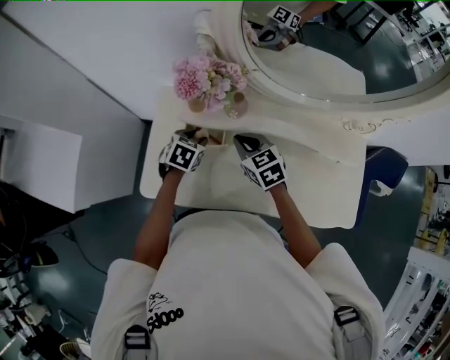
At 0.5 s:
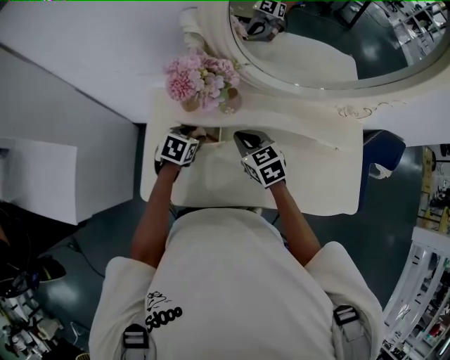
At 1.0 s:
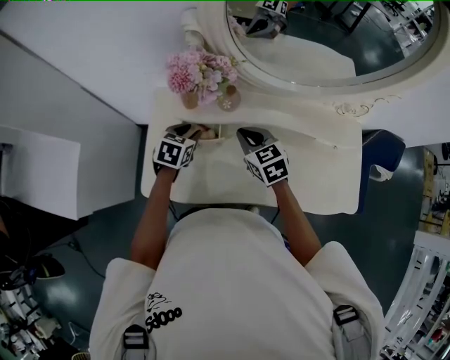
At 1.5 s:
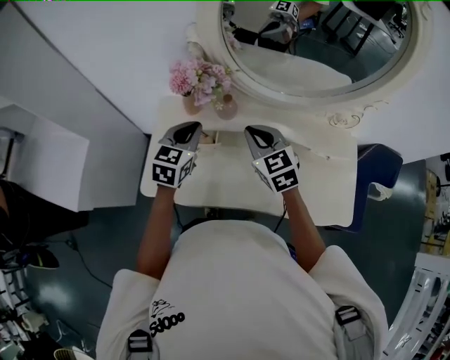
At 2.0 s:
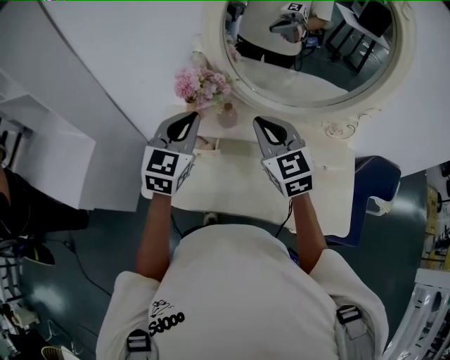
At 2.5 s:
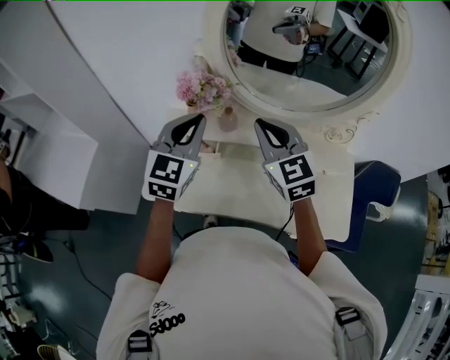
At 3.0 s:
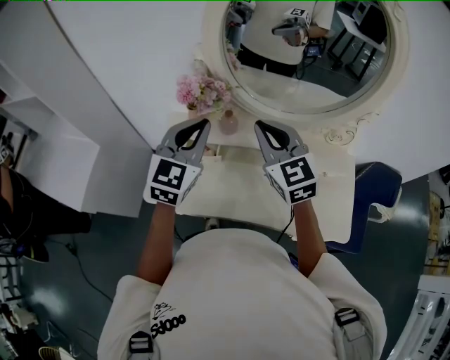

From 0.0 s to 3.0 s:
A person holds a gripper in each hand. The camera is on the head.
From 0.0 s to 1.5 s: The right gripper heads upward and to the right, covering approximately 15 cm, while the left gripper shifts roughly 20 cm upward, points its fingers some 30 degrees further upward, and closes up.
From 1.5 s to 3.0 s: The two grippers go roughly 15 cm upward. The left gripper swivels approximately 20 degrees.

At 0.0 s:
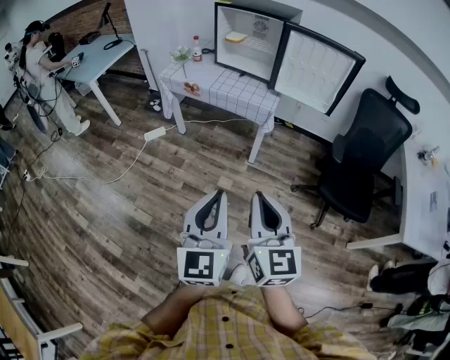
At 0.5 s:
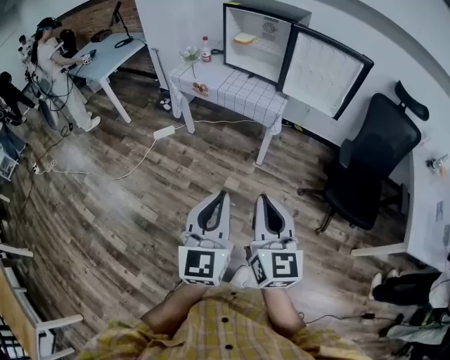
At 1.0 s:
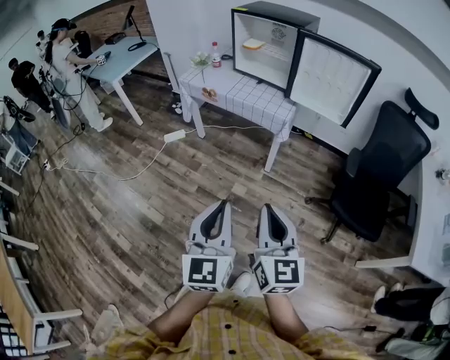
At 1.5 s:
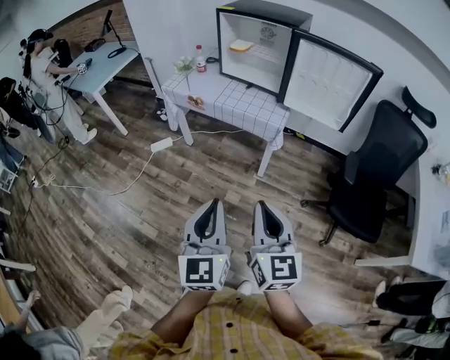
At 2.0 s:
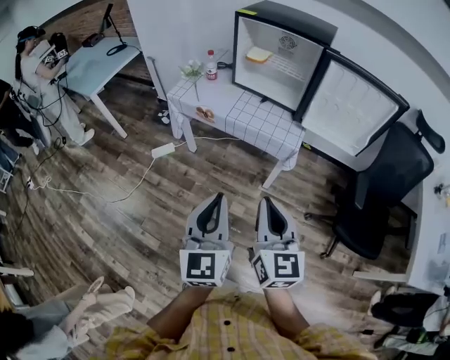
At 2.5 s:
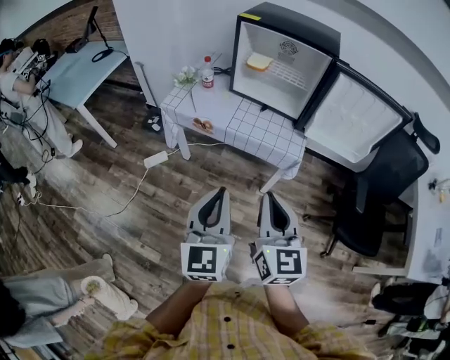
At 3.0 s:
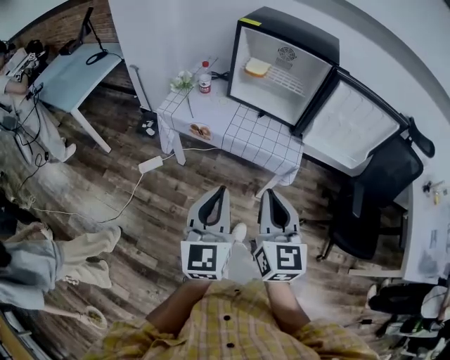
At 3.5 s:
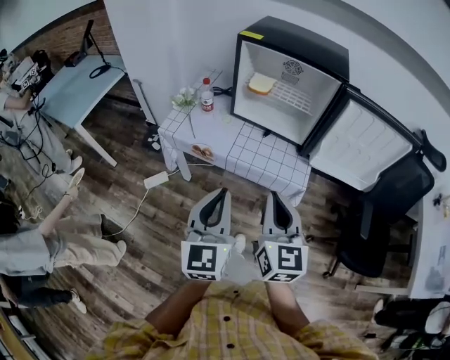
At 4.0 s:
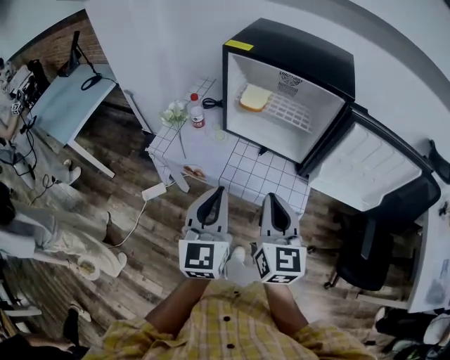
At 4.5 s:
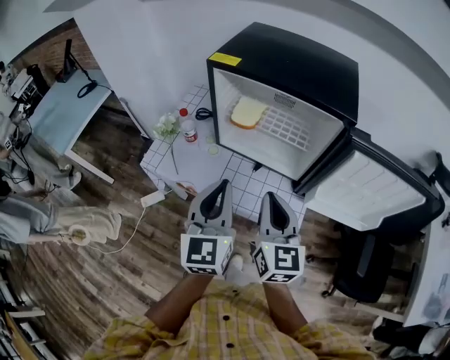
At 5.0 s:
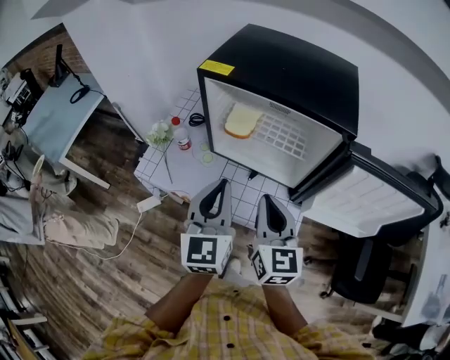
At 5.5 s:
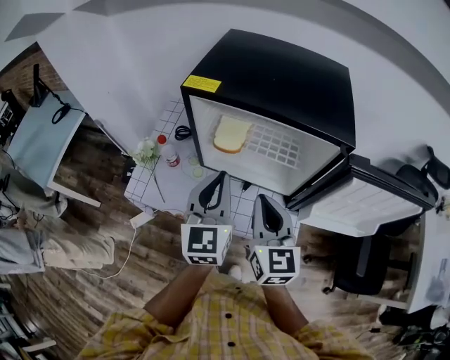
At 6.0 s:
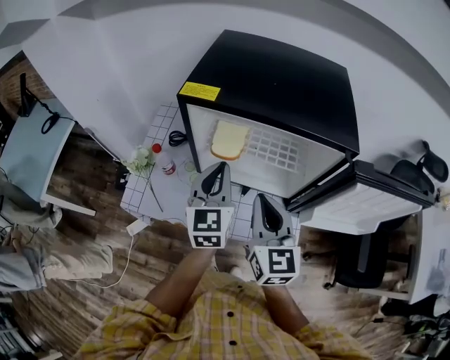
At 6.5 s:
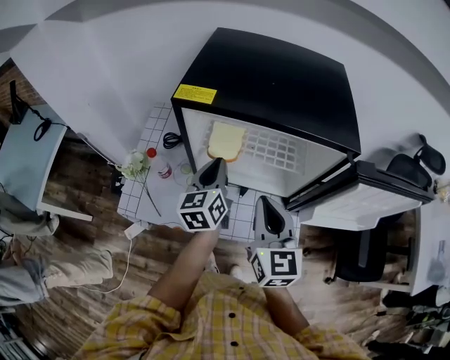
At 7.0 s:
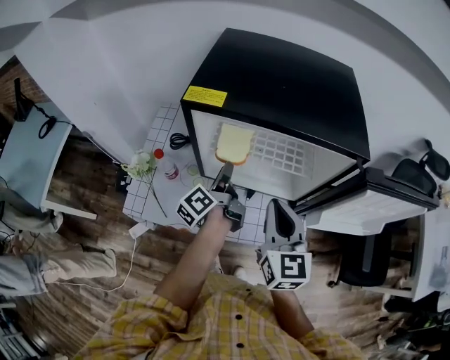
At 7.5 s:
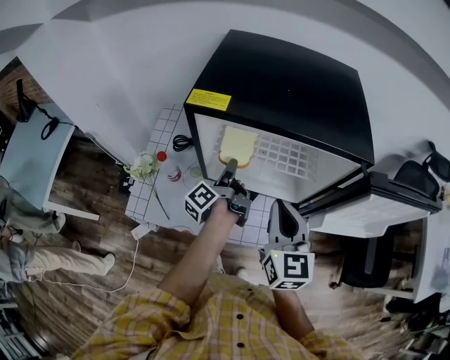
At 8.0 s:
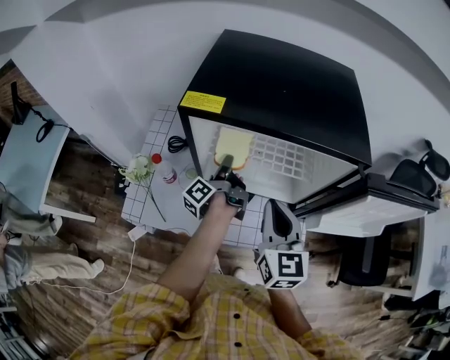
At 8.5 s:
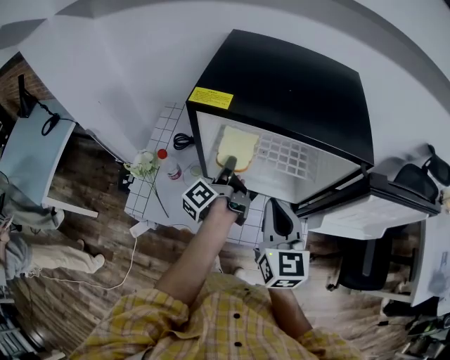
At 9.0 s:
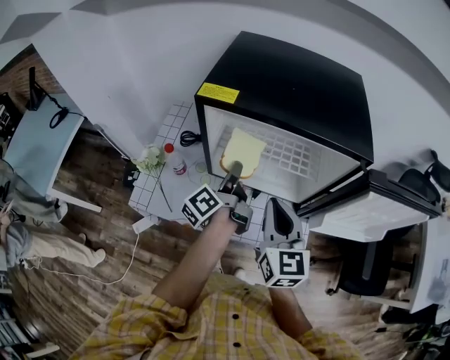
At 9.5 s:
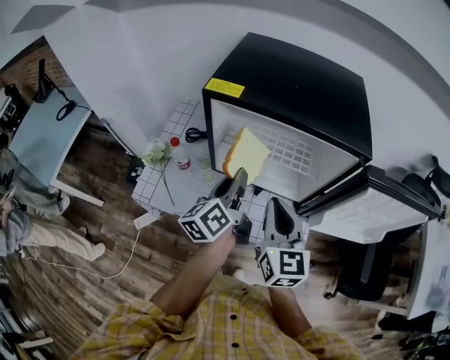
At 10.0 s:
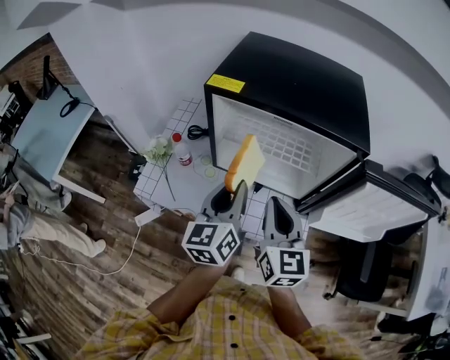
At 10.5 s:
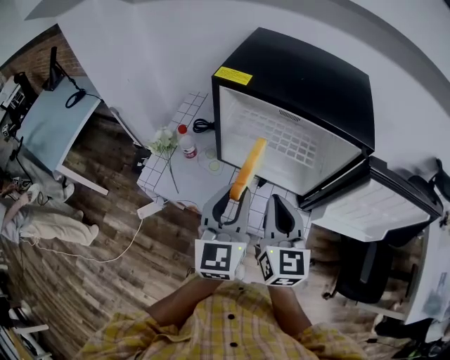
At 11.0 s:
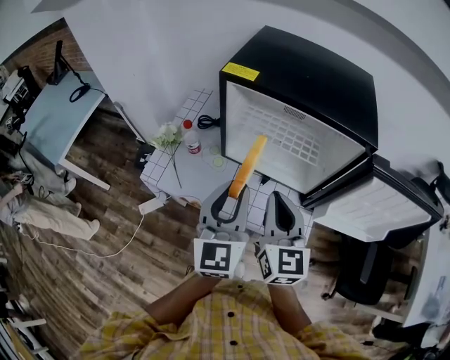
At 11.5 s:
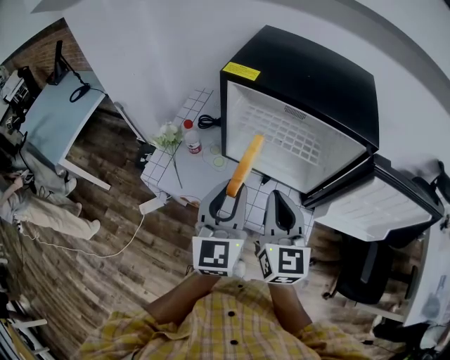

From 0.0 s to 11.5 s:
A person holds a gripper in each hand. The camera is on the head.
From 0.0 s to 2.0 s: The grippers both shift forward by some 25 cm.
From 2.0 s to 4.0 s: Both grippers travel together forward, about 30 cm.
From 4.0 s to 6.0 s: Both grippers move forward, roughly 25 cm.
From 6.0 s to 7.5 s: The left gripper goes some 15 cm downward and forward, twists some 90 degrees counterclockwise, seen from behind, and opens.
From 7.5 s to 9.5 s: The left gripper heads upward and backward, covering approximately 15 cm, and changes its angle by some 40 degrees.
From 9.5 s to 11.5 s: The left gripper goes roughly 10 cm backward and upward, and rotates around the line of its fingers by roughly 50 degrees, clockwise from behind.

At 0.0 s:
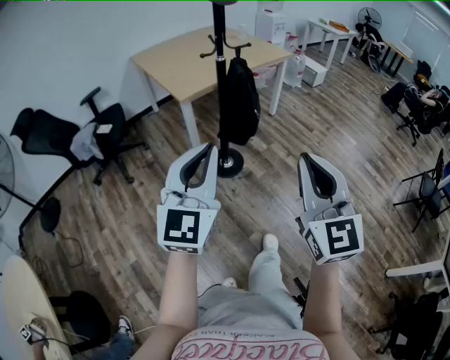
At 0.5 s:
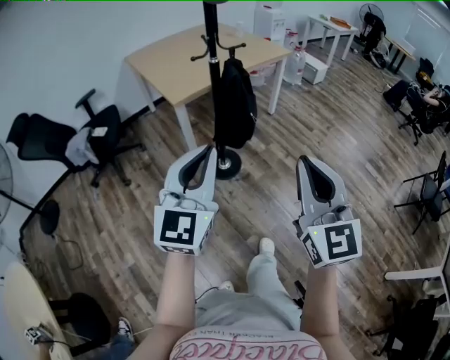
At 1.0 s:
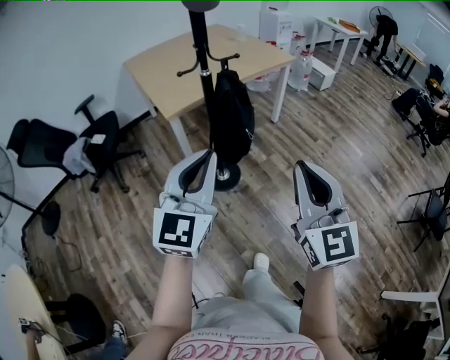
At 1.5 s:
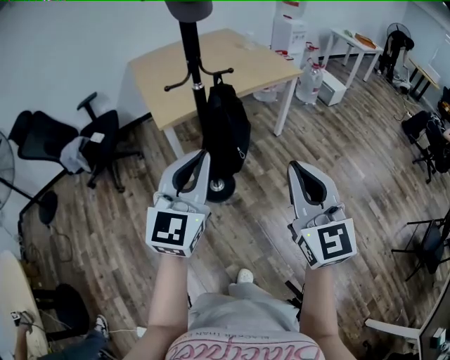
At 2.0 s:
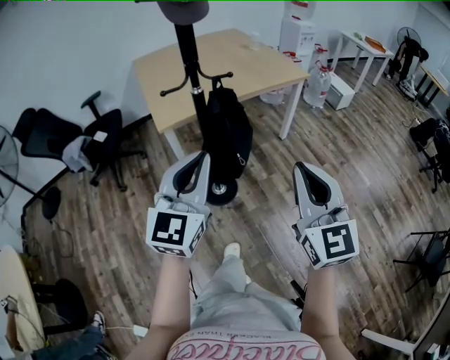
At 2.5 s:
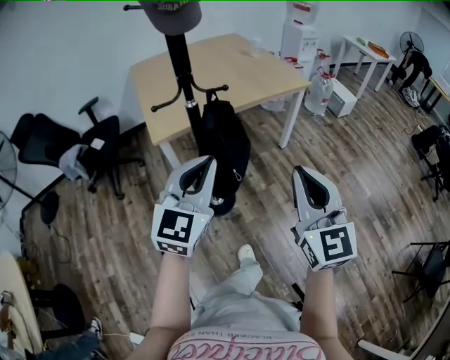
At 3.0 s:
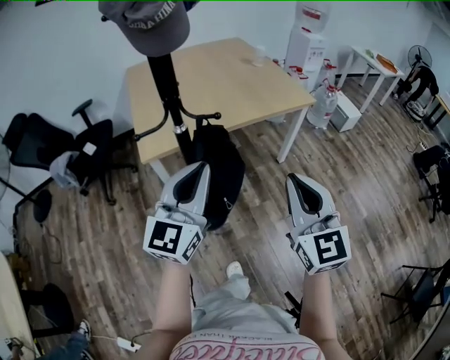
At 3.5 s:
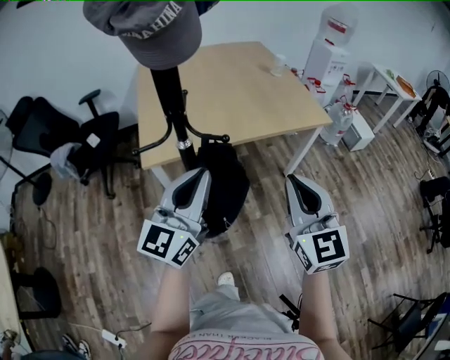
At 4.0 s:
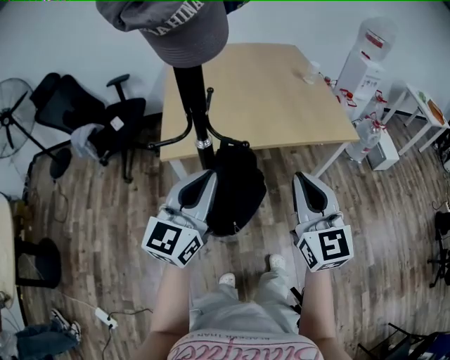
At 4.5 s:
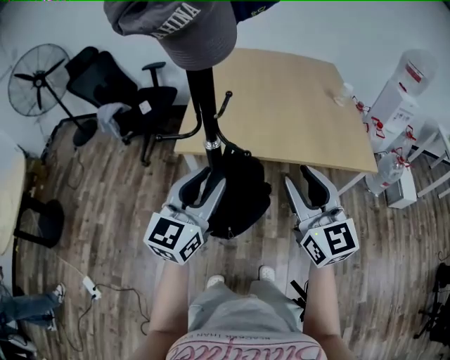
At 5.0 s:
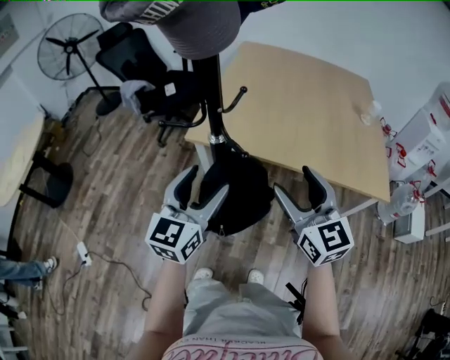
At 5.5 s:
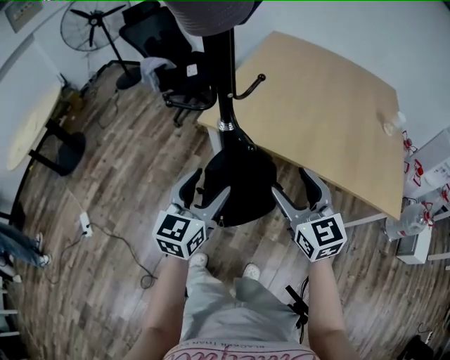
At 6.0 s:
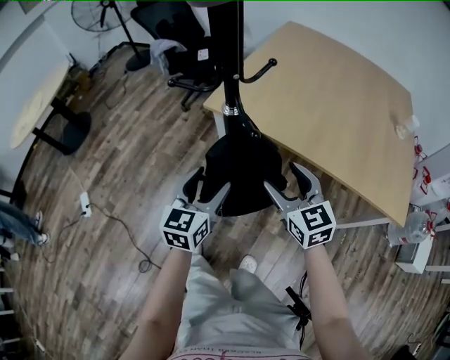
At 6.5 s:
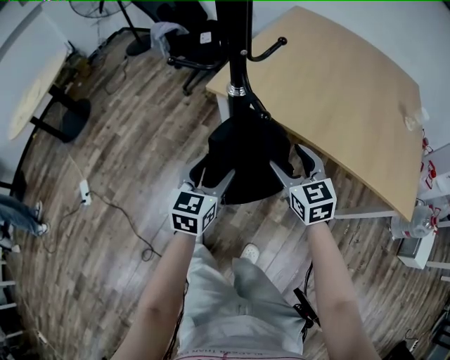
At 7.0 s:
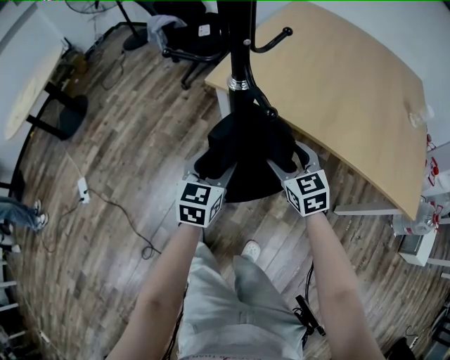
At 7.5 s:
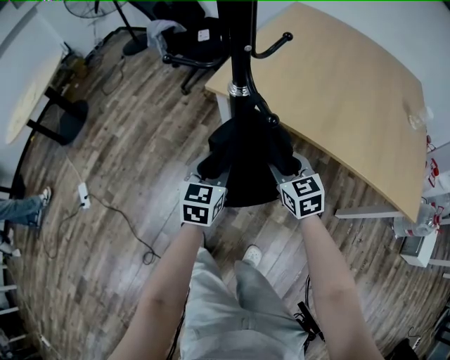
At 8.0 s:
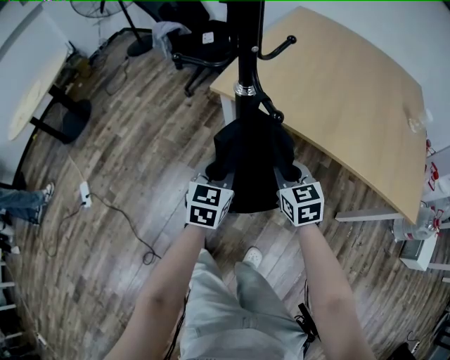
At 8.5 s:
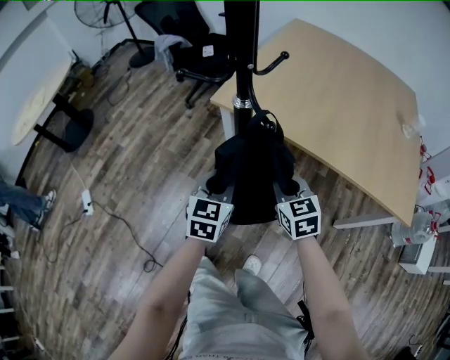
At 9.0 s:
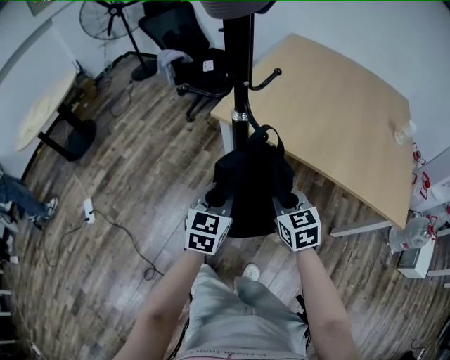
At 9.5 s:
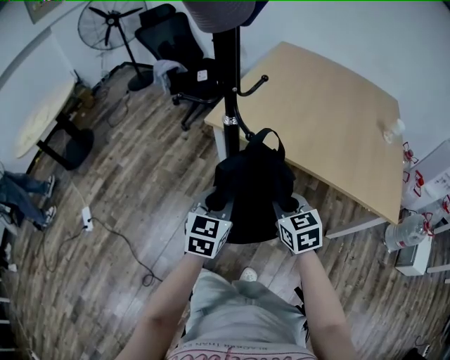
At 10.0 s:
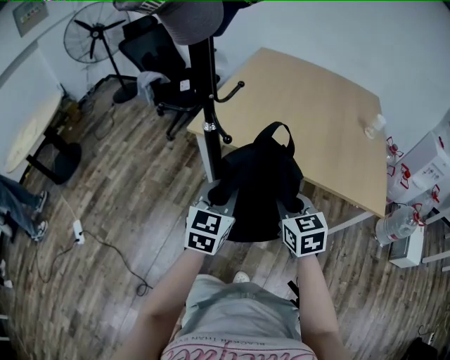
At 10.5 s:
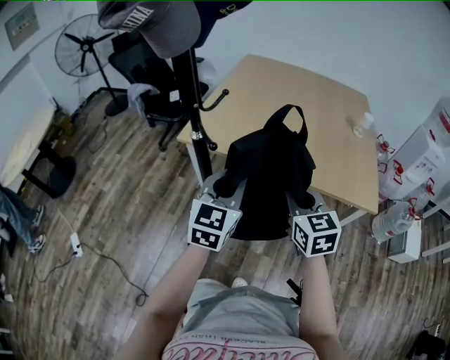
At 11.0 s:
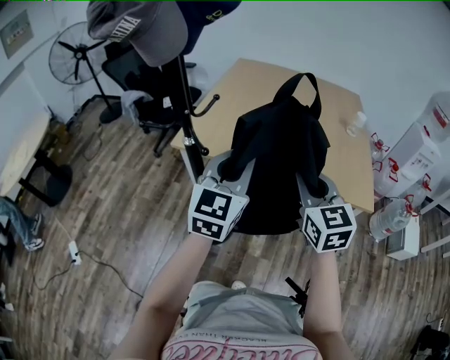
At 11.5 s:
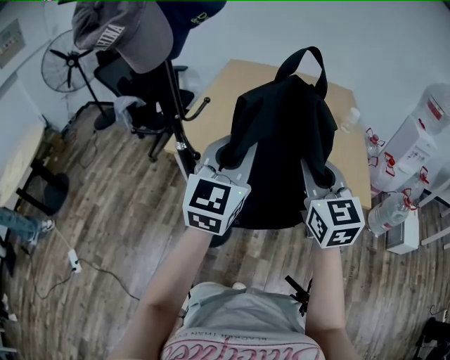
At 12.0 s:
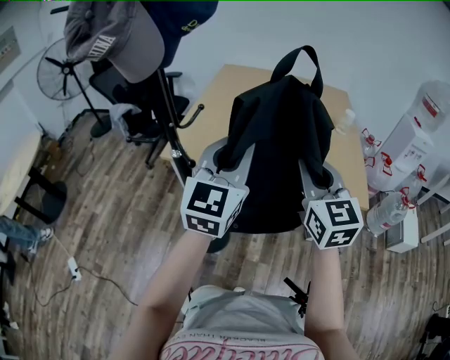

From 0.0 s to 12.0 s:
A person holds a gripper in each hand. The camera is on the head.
From 0.0 s to 2.0 s: The grippers both shift forward and to the right by some 30 cm.
From 2.0 s to 4.0 s: The two grippers go some 25 cm forward.
From 4.0 s to 6.0 s: The two grippers go about 15 cm downward. The left gripper changes its angle by about 50 degrees, and opens its fingers. Meanwhile the right gripper changes its angle by approximately 50 degrees, and opens its fingers.
From 6.0 s to 8.0 s: The grippers both shift downward by about 10 cm. The left gripper closes up. The right gripper closes up.
From 8.0 s to 10.0 s: The right gripper is displaced upward, backward and to the right by roughly 15 cm. Meanwhile the left gripper moves upward, to the right and backward, about 15 cm.
From 10.0 s to 12.0 s: The grippers both shift upward and to the right by roughly 20 cm. The right gripper swivels approximately 30 degrees; the left gripper swivels some 20 degrees.
